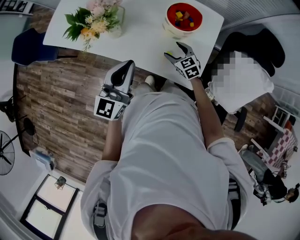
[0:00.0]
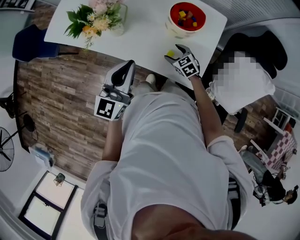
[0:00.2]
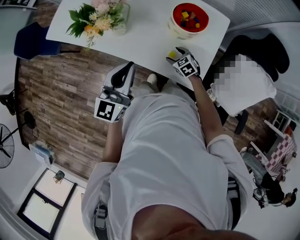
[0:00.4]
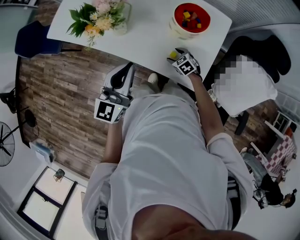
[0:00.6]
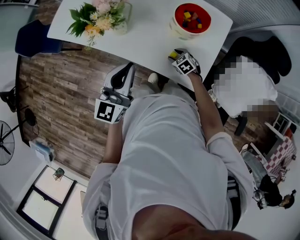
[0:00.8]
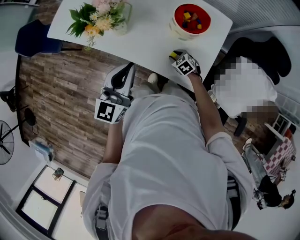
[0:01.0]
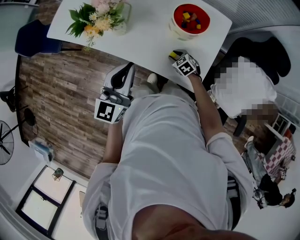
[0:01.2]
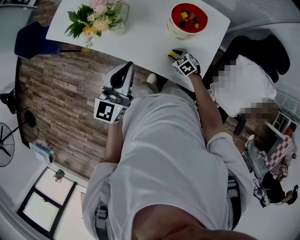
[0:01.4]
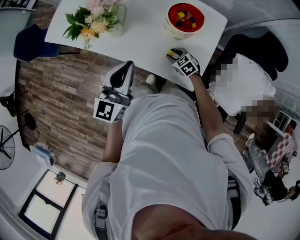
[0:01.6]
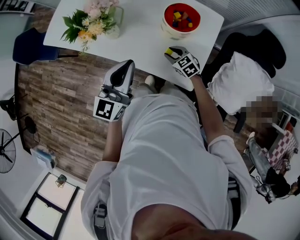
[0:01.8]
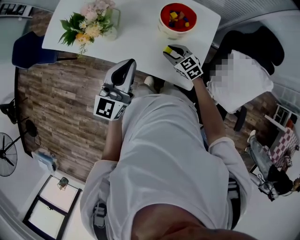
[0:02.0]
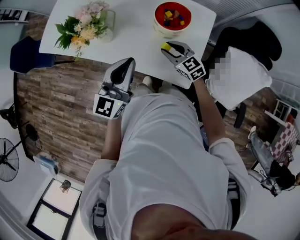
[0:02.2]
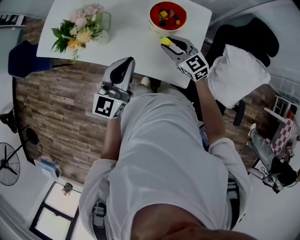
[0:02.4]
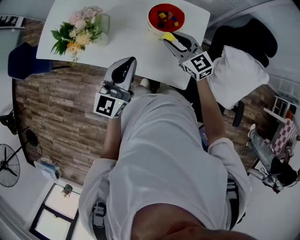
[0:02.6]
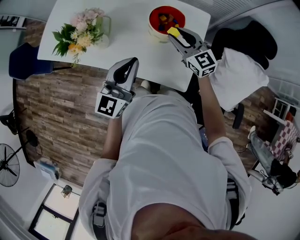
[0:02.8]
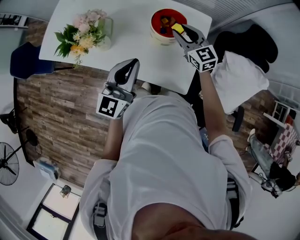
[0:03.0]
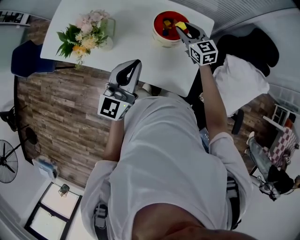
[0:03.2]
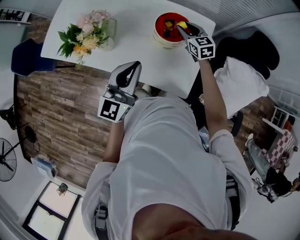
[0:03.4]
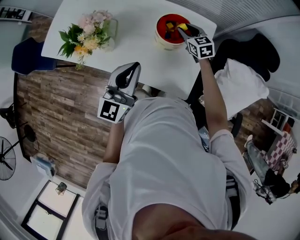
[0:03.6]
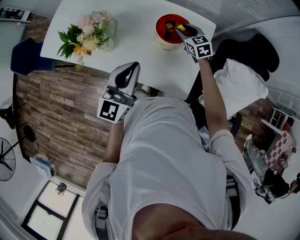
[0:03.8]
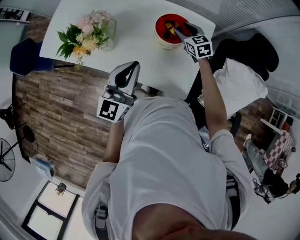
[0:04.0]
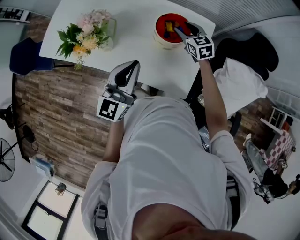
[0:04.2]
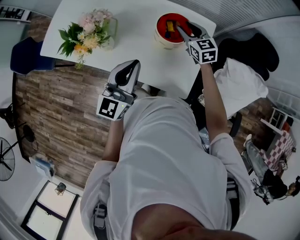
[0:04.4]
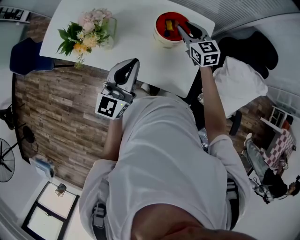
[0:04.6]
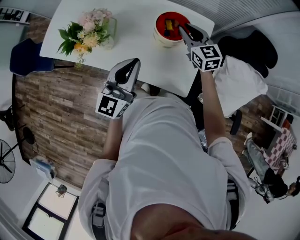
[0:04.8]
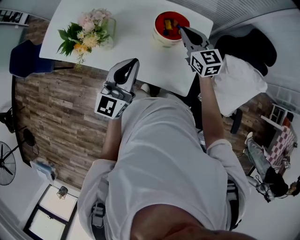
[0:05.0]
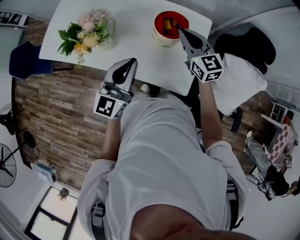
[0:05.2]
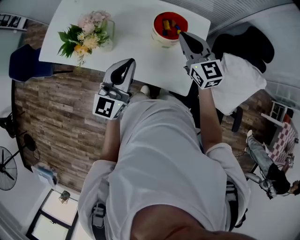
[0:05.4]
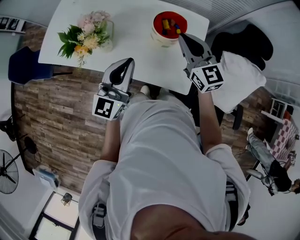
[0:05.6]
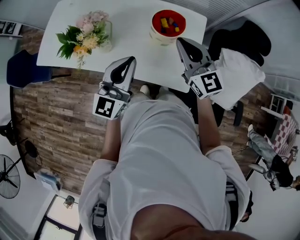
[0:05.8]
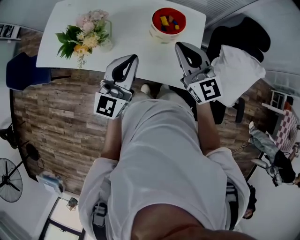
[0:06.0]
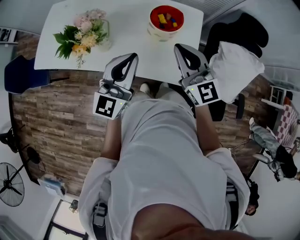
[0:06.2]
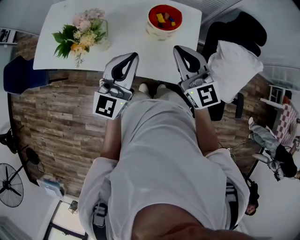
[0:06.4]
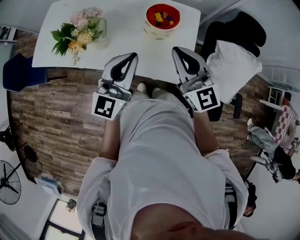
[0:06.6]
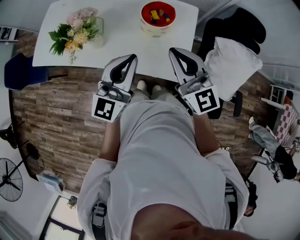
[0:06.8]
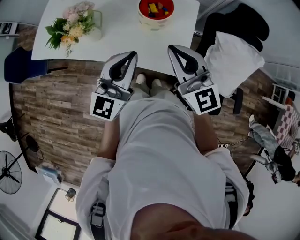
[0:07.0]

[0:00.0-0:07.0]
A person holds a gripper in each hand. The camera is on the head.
0:00.0 to 0:01.4: The right gripper shifts approximately 10 cm downward, and closes its fingers.
0:01.4 to 0:02.8: The left gripper is displaced to the right by approximately 10 cm. The right gripper moves upward, about 25 cm, and tips its fingers upward by roughly 40 degrees.
0:02.8 to 0:04.2: The right gripper moves forward and downward, approximately 10 cm.
0:04.2 to 0:05.6: The right gripper is displaced upward and backward by roughly 20 cm, rotates some 20 degrees, and closes its fingers.
0:05.6 to 0:07.0: The right gripper moves backward, roughly 15 cm. The left gripper shifts about 10 cm to the right and backward.

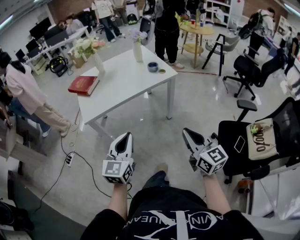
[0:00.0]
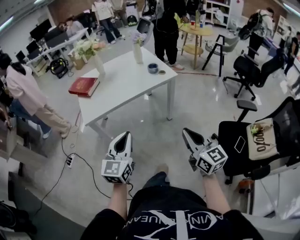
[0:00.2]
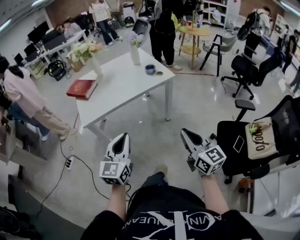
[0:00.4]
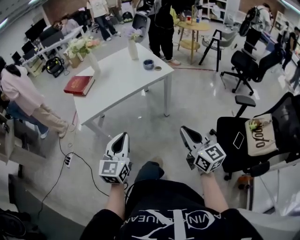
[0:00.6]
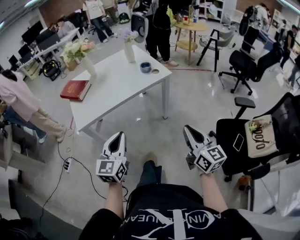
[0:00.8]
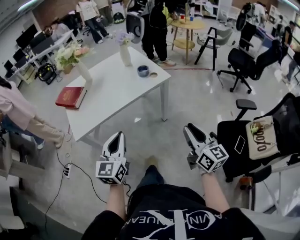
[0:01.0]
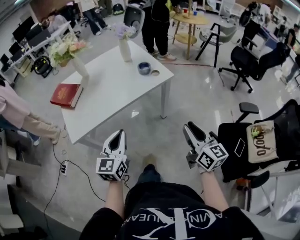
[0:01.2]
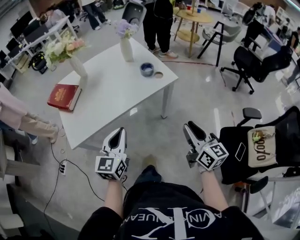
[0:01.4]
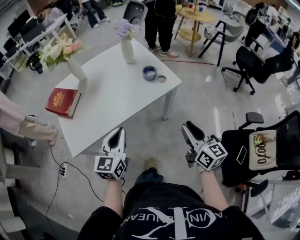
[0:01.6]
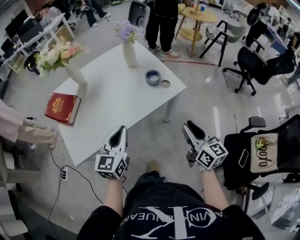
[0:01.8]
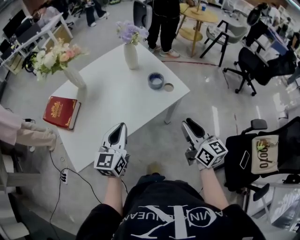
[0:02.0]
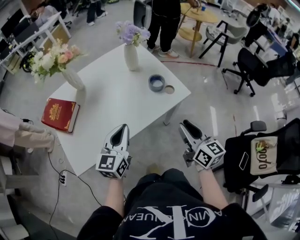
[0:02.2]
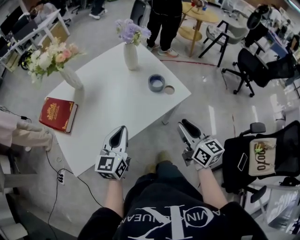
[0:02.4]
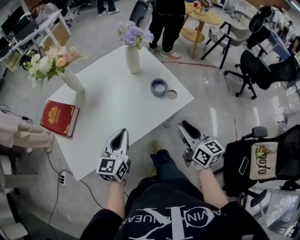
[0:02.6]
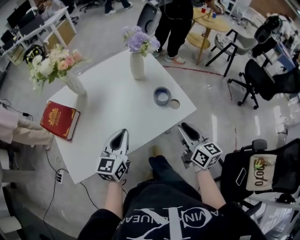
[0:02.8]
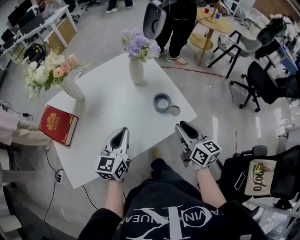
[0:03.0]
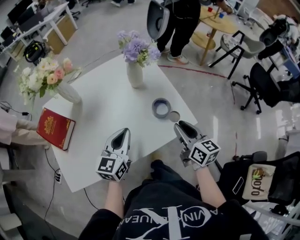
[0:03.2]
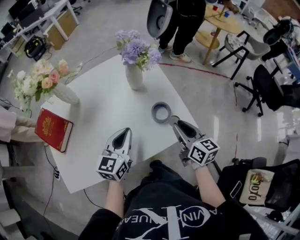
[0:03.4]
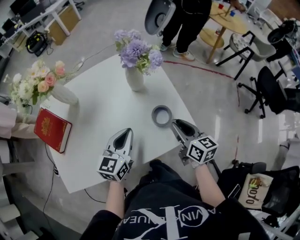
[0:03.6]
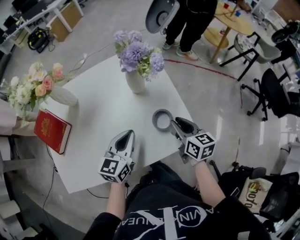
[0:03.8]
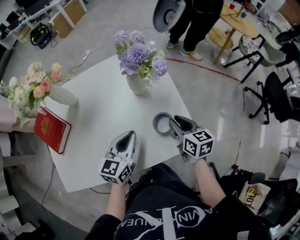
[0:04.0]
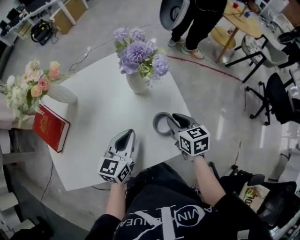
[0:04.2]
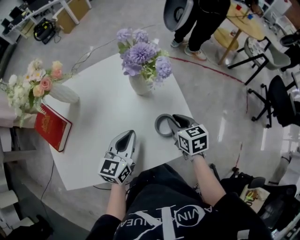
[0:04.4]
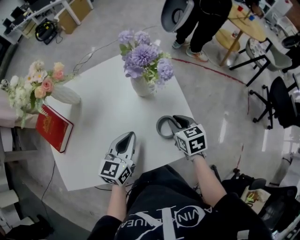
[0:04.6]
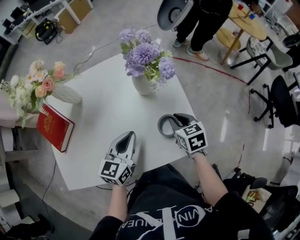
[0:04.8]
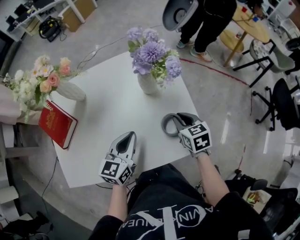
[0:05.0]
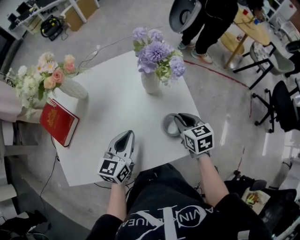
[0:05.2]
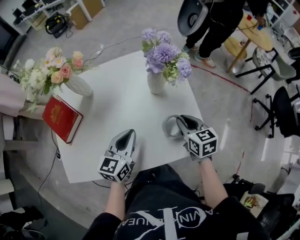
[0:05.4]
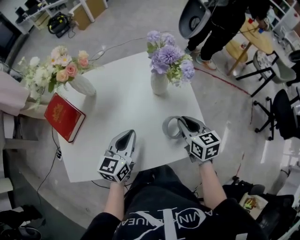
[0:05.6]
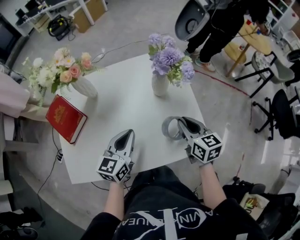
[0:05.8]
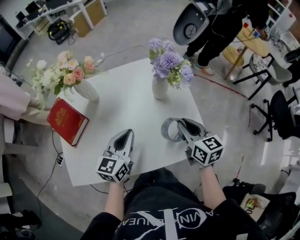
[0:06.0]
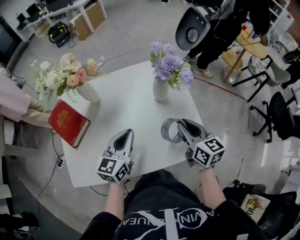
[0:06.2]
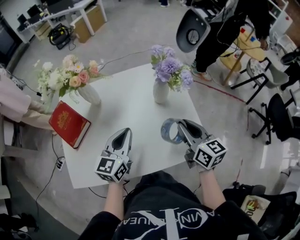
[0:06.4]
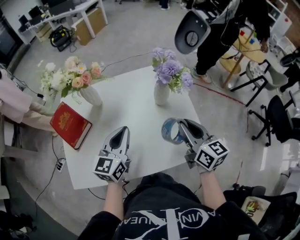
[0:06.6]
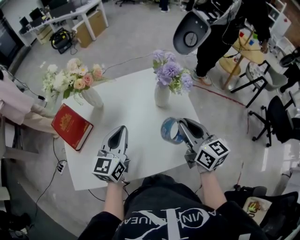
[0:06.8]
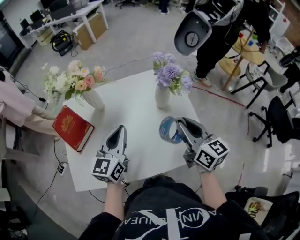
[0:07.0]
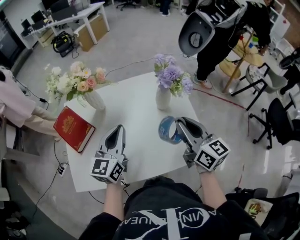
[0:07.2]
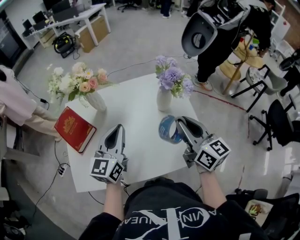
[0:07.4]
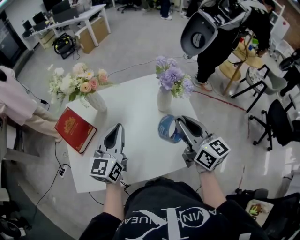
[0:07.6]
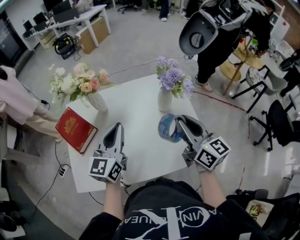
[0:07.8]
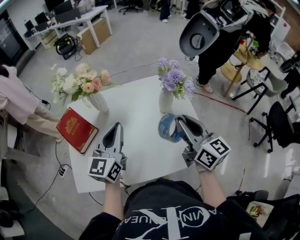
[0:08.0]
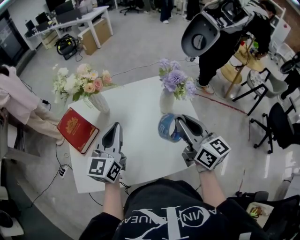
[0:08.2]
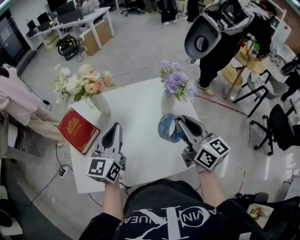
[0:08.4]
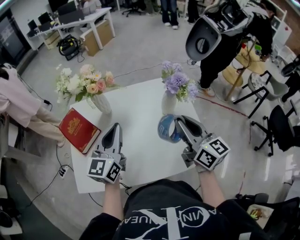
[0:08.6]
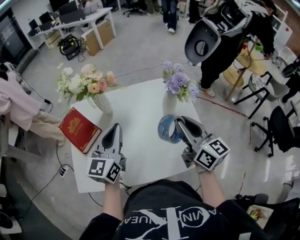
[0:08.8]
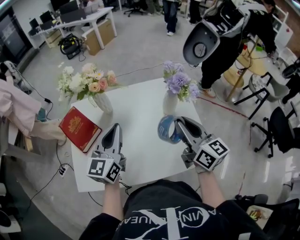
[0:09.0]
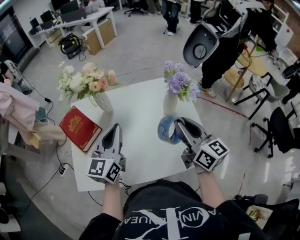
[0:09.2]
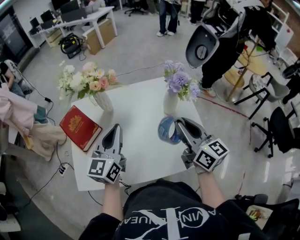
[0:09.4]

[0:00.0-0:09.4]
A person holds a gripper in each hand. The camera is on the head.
0:00.0 to 0:01.6: The two grippers go about 30 cm forward. The right gripper opens its fingers.
0:01.6 to 0:03.2: Both grippers travel together forward, about 25 cm.
0:03.2 to 0:04.8: The left gripper goes some 5 cm forward; the right gripper travels forward and downward by some 15 cm, and rotates approximately 40 degrees.
0:04.8 to 0:06.2: The right gripper heads upward, covering about 15 cm, and changes its angle by about 30 degrees. Meanwhile the left gripper moves to the left and upward, about 10 cm.
0:06.2 to 0:07.8: The right gripper travels upward by about 10 cm; the left gripper is displaced upward and to the left by approximately 10 cm.
0:07.8 to 0:09.4: The grippers make only small movements.

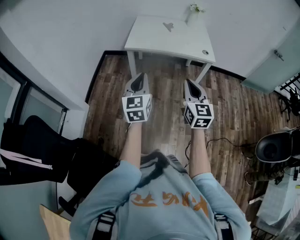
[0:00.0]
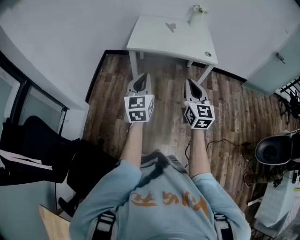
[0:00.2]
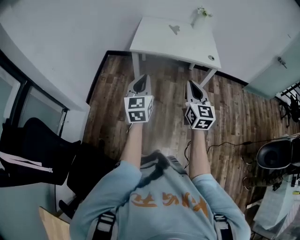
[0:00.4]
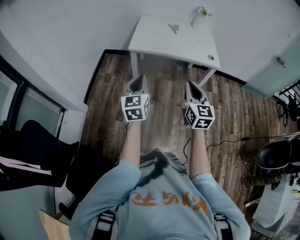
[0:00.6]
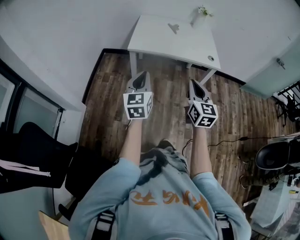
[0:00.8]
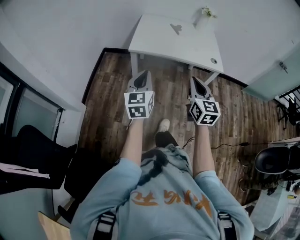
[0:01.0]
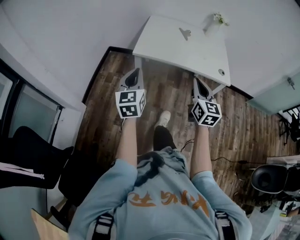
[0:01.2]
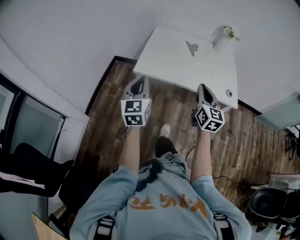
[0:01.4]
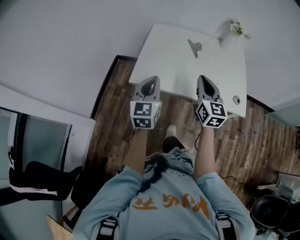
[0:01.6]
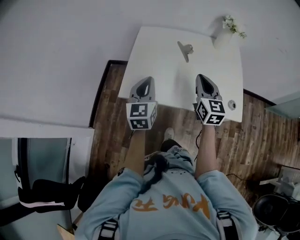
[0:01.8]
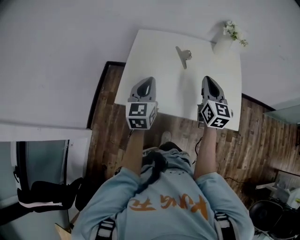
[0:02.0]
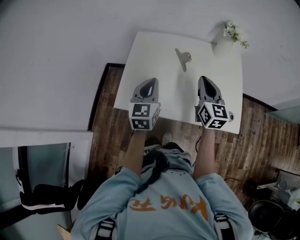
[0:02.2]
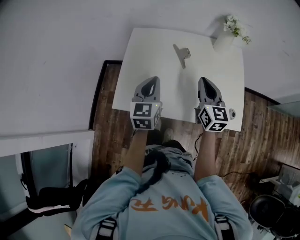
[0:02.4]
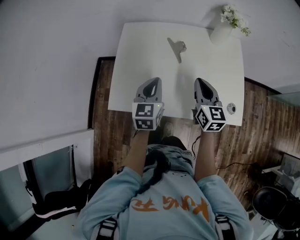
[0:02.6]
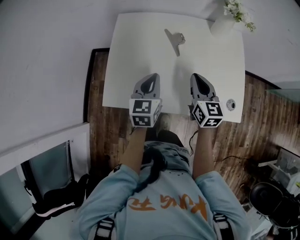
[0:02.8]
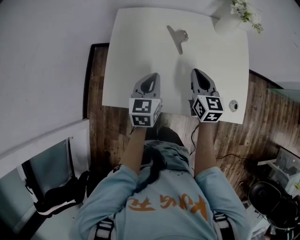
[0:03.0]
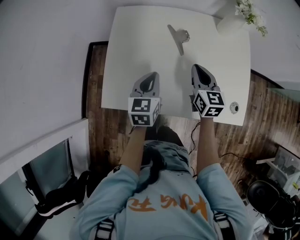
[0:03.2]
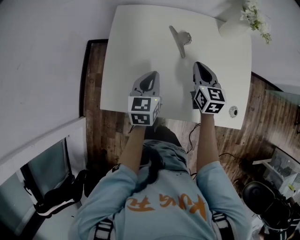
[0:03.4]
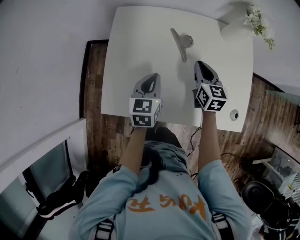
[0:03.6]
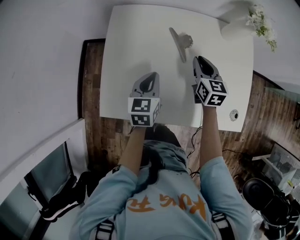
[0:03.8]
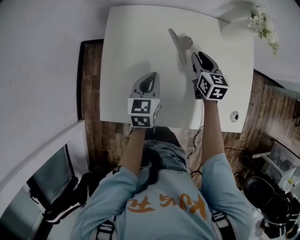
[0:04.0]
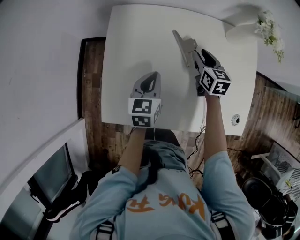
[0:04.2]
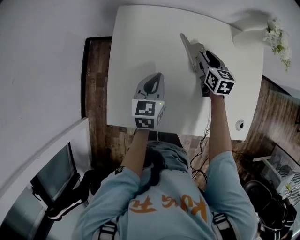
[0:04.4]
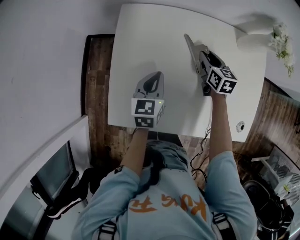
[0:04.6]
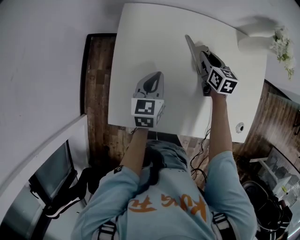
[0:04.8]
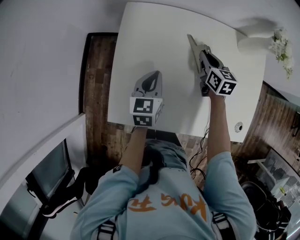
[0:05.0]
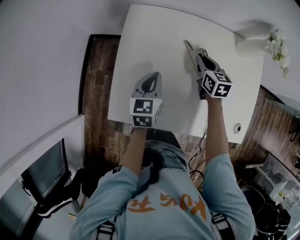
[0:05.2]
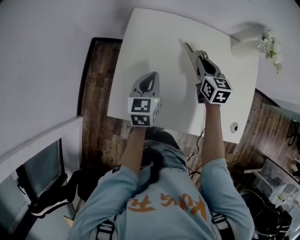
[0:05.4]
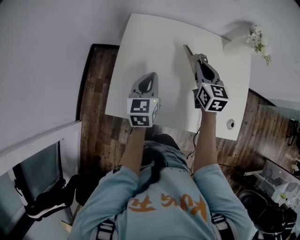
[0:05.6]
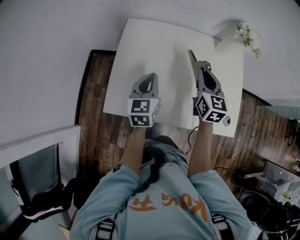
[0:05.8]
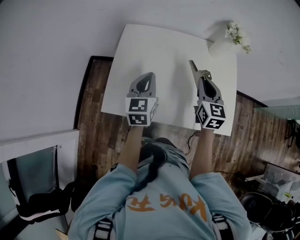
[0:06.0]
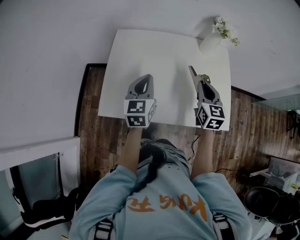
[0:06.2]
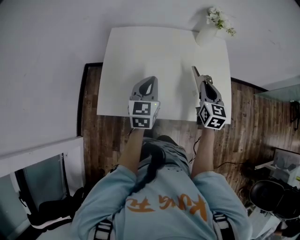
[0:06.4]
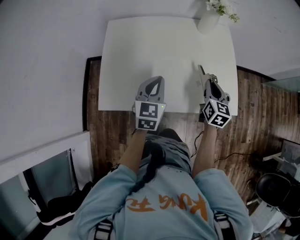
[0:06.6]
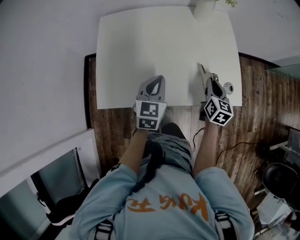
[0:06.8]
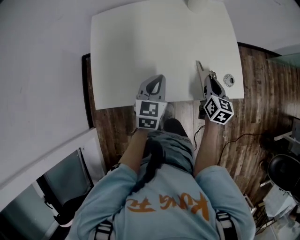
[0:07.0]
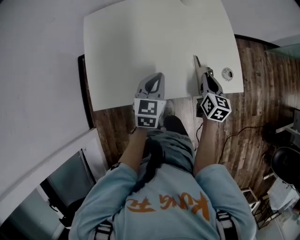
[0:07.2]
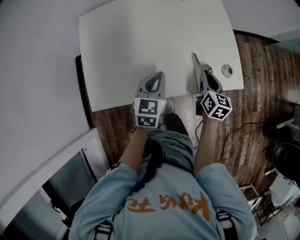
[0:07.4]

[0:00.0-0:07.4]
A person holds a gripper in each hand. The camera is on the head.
0:00.0 to 0:01.4: The two grippers go roughly 30 cm forward.
0:01.4 to 0:03.0: The right gripper goes about 35 cm forward, while the left gripper travels forward and to the right by roughly 40 cm, and turns by about 30 degrees.
0:03.0 to 0:04.4: The right gripper goes about 20 cm forward and downward, and opens. The left gripper travels forward and downward by roughly 10 cm.
0:04.4 to 0:06.0: The left gripper is displaced upward and backward by about 15 cm. Meanwhile the right gripper shifts some 25 cm backward and upward, changes its angle by about 20 degrees, and closes its fingers.
0:06.0 to 0:07.4: The left gripper goes approximately 20 cm to the right and downward, and changes its angle by approximately 30 degrees; the right gripper shifts approximately 25 cm downward, to the right and backward, and turns by some 40 degrees.
